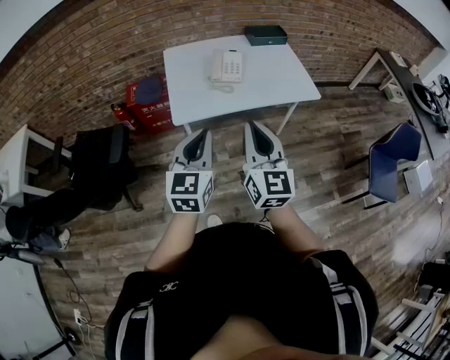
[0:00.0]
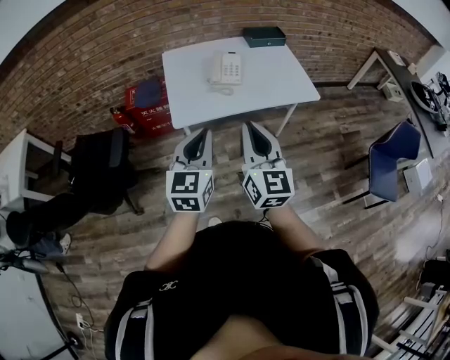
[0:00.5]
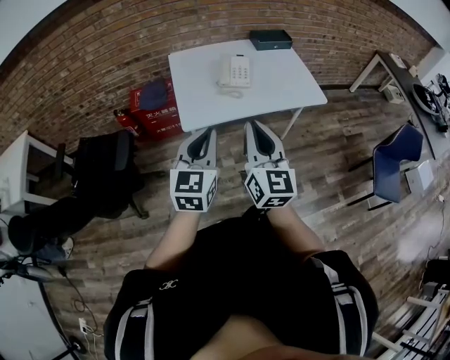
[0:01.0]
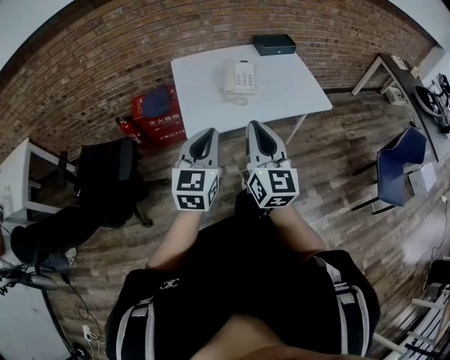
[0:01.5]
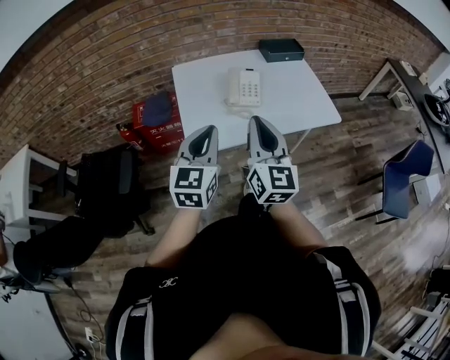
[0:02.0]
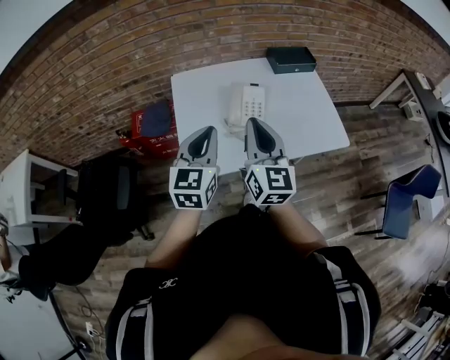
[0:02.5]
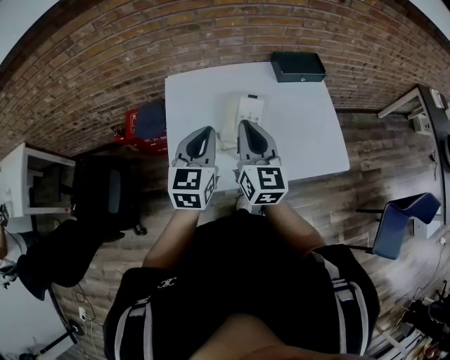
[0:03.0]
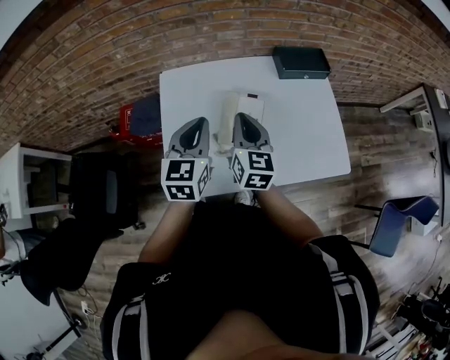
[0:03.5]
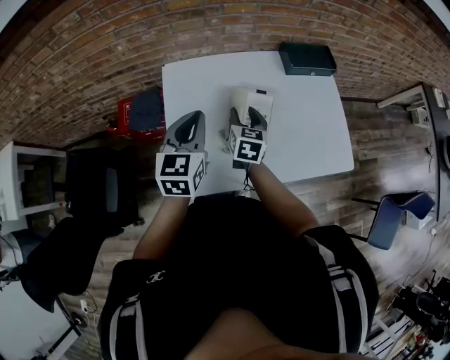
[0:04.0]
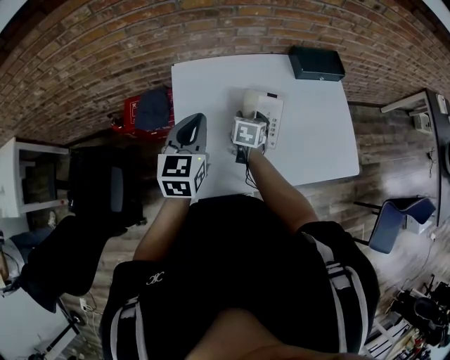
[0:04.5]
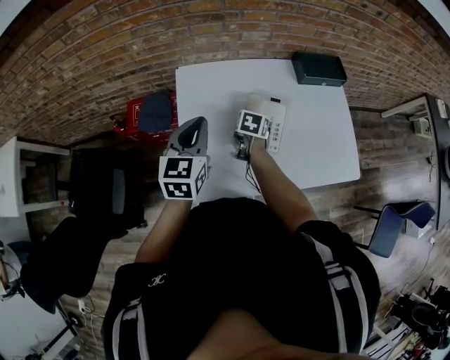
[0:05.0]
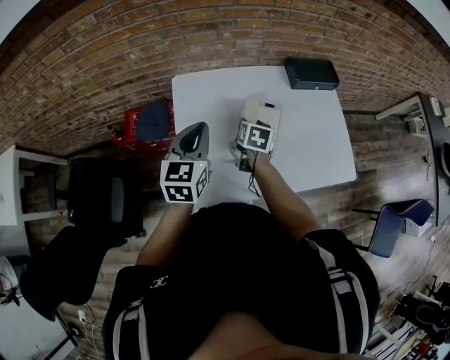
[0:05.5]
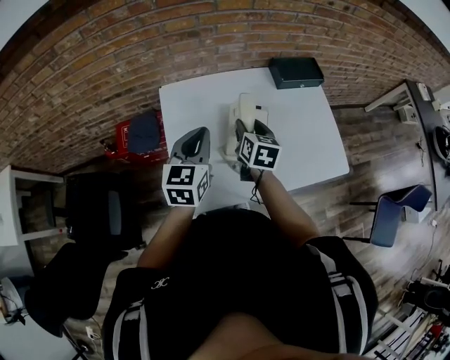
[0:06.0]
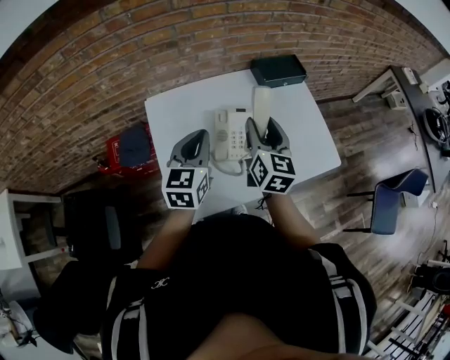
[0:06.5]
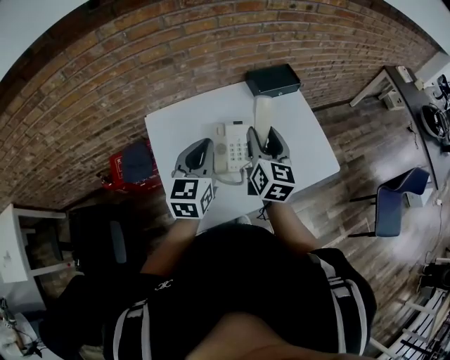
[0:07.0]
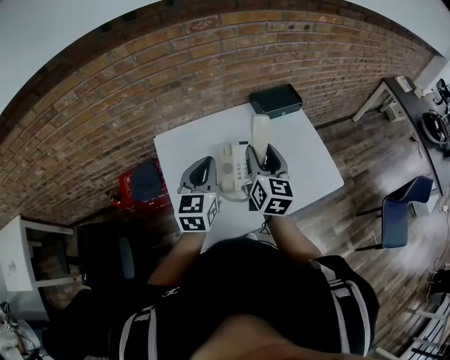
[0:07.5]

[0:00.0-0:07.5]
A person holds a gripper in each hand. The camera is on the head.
0:00.0 to 0:02.0: The right gripper goes some 15 cm forward and to the left. Meanwhile the left gripper moves forward, about 15 cm.
0:02.0 to 0:04.0: The left gripper is displaced forward by approximately 30 cm. Meanwhile the right gripper is displaced forward and downward by approximately 40 cm, points its fingers about 40 degrees further downward, and opens up.
0:05.5 to 0:07.5: The left gripper moves to the right, roughly 10 cm. The right gripper heads upward and to the right, covering approximately 20 cm, and tilts its fingers about 40 degrees upward.

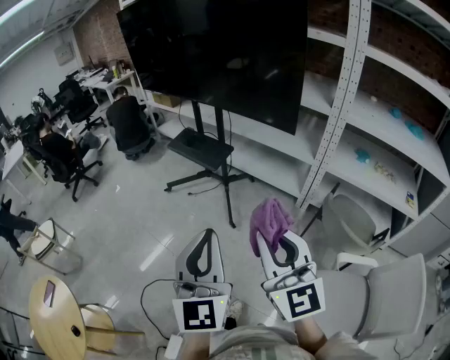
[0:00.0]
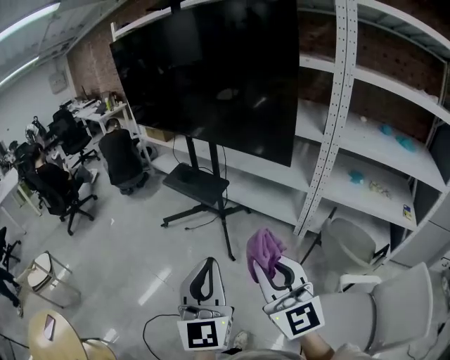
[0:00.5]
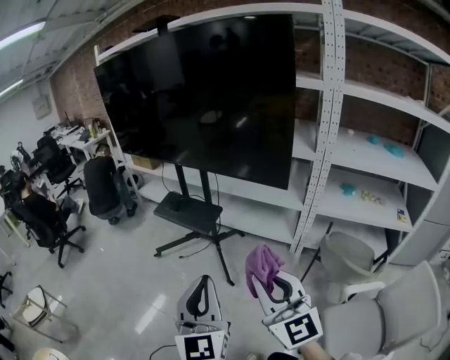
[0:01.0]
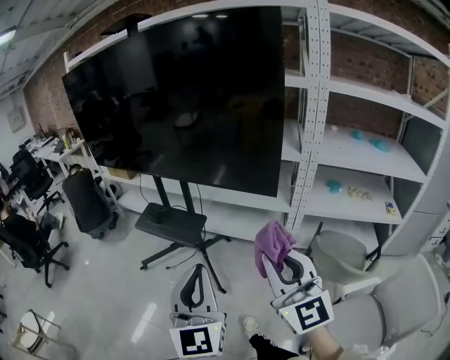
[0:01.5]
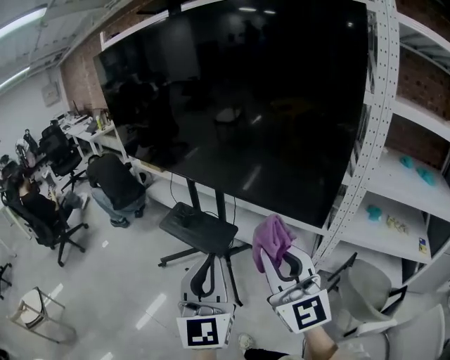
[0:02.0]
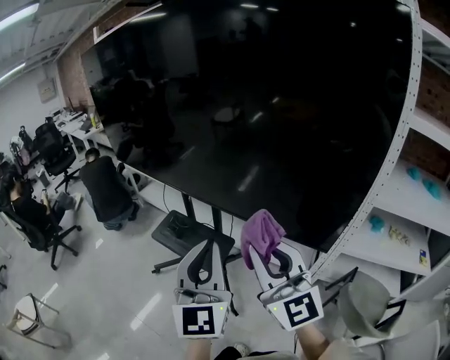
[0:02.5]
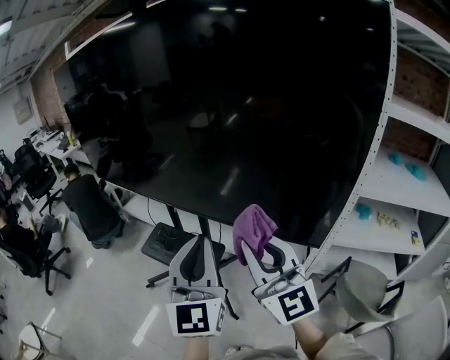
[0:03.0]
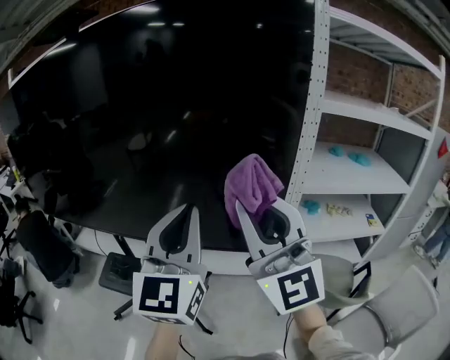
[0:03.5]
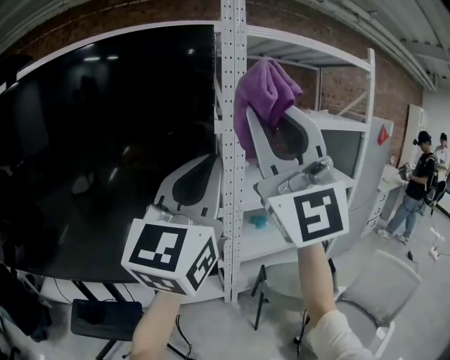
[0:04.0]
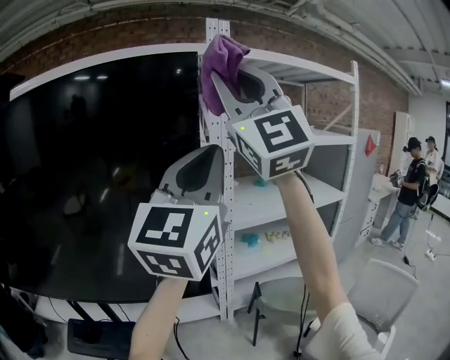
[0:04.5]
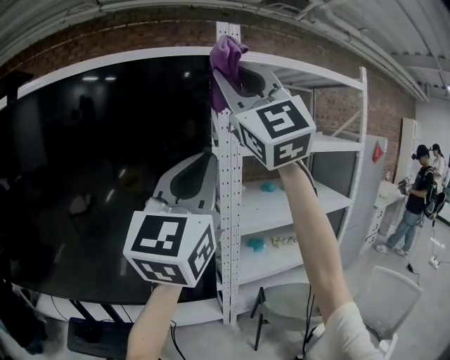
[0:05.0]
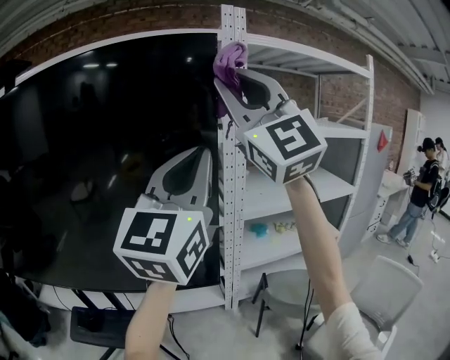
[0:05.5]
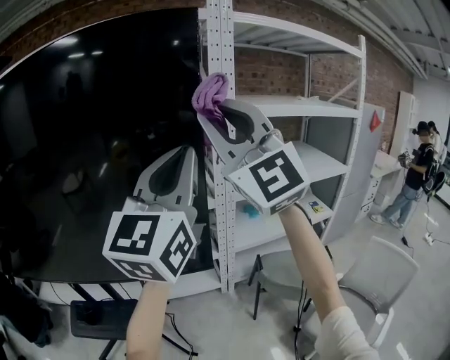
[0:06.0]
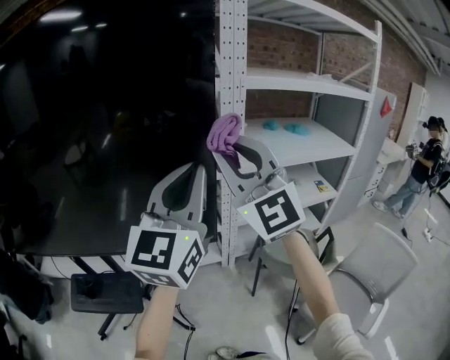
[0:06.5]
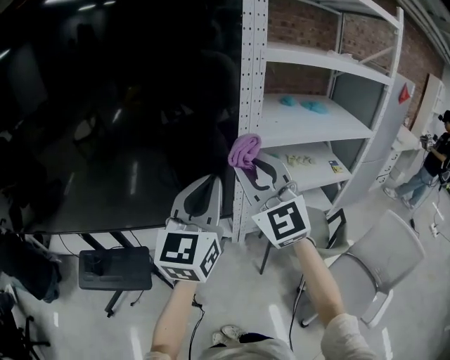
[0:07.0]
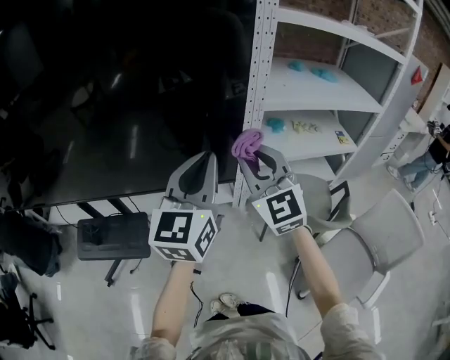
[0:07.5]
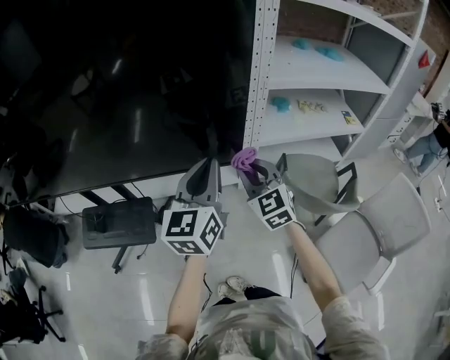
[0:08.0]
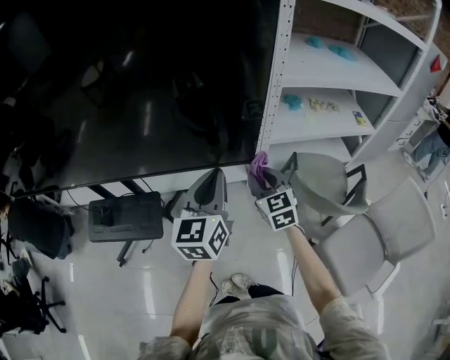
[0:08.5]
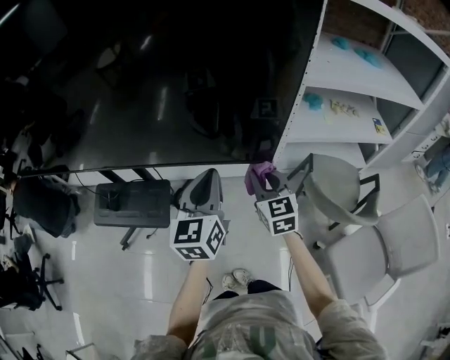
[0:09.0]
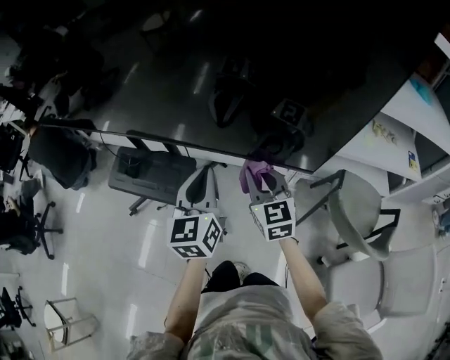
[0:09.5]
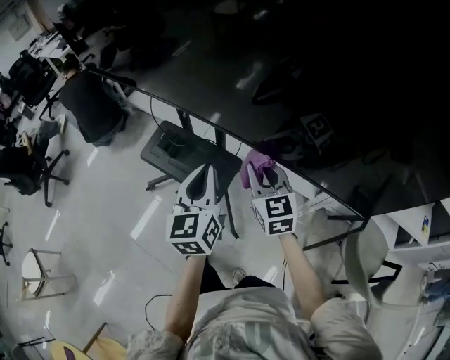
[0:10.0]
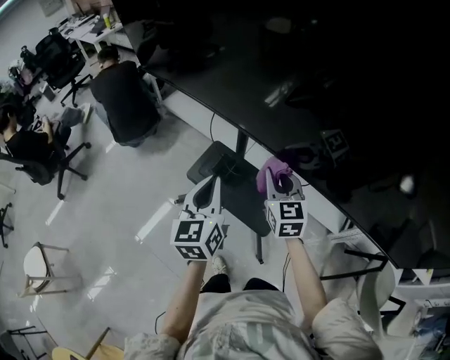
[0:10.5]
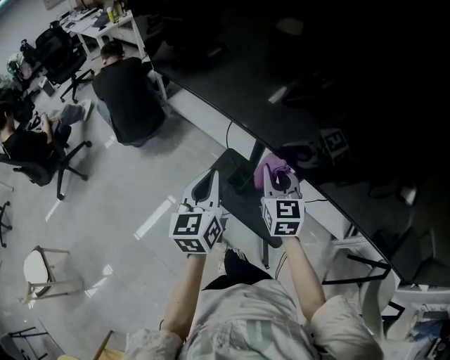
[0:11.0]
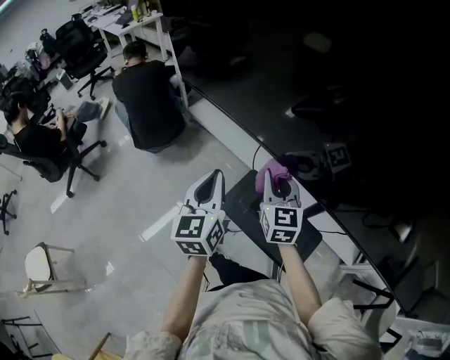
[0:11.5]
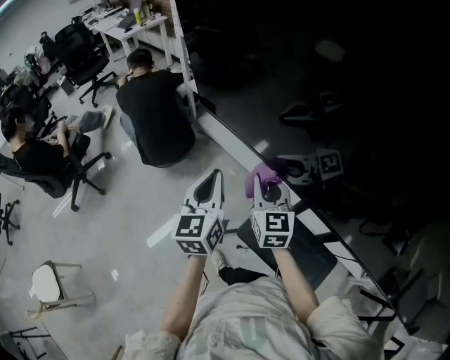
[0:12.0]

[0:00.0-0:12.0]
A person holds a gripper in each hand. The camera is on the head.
0:00.0 to 0:02.0: Both grippers travel together forward, roughly 35 cm.
0:02.0 to 0:04.0: The left gripper shifts by about 40 cm, and turns by roughly 60 degrees. Meanwhile the right gripper goes some 35 cm upward, and rotates around the line of its fingers by approximately 50 degrees, counterclockwise from behind.
0:04.0 to 0:06.0: The right gripper shifts approximately 10 cm forward, and goes upward and returns, about 10 cm each way.
0:06.0 to 0:08.0: Both grippers travel together downward, roughly 40 cm. The left gripper changes its angle by approximately 30 degrees, while the right gripper angles its fingers downward, by approximately 40 degrees.
0:08.0 to 0:10.0: The right gripper moves some 35 cm, and rotates approximately 30 degrees, while the left gripper changes place by approximately 35 cm, and changes its angle by approximately 50 degrees.
0:10.0 to 0:12.0: The pair of grippers is taken to the left and forward, roughly 60 cm.

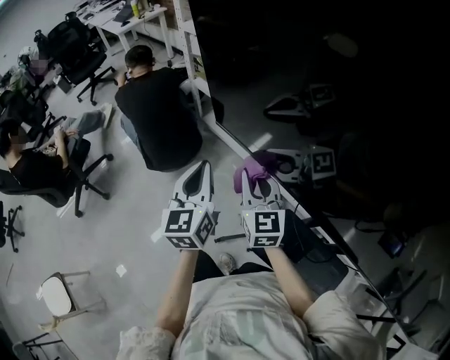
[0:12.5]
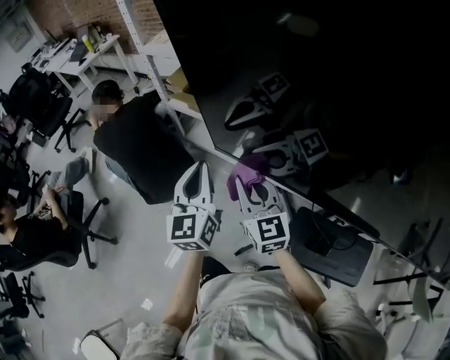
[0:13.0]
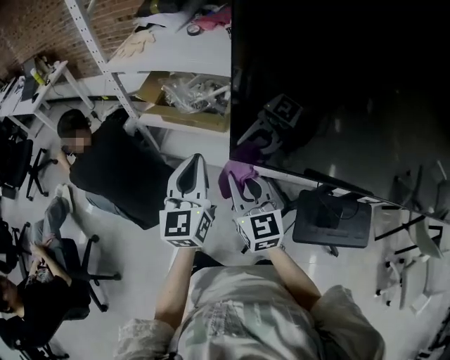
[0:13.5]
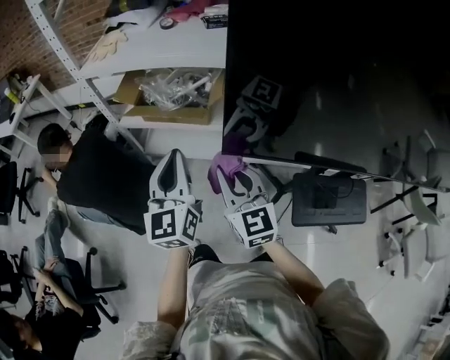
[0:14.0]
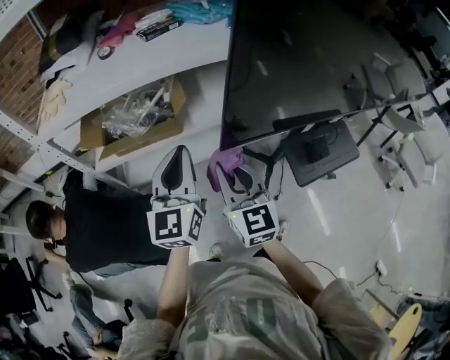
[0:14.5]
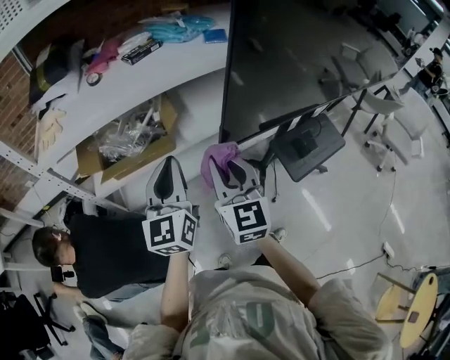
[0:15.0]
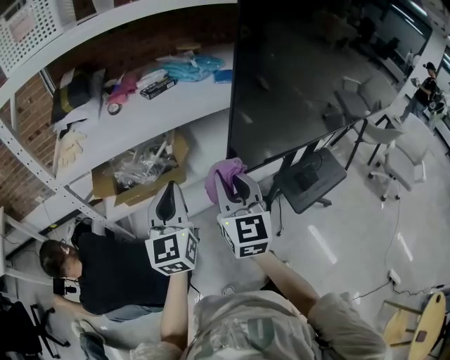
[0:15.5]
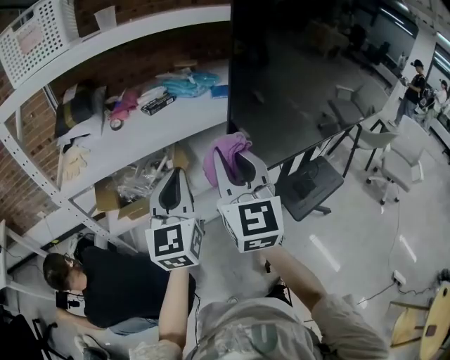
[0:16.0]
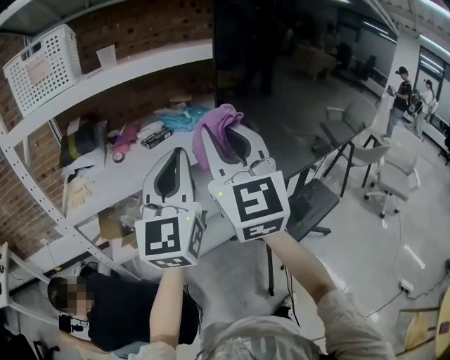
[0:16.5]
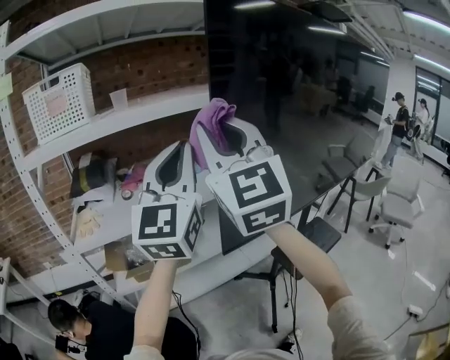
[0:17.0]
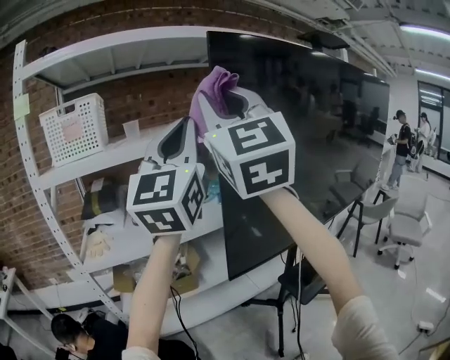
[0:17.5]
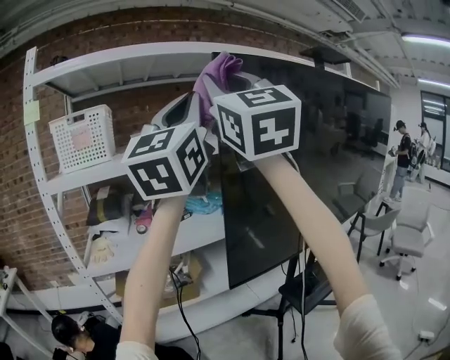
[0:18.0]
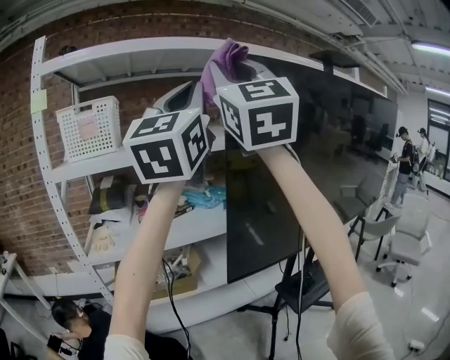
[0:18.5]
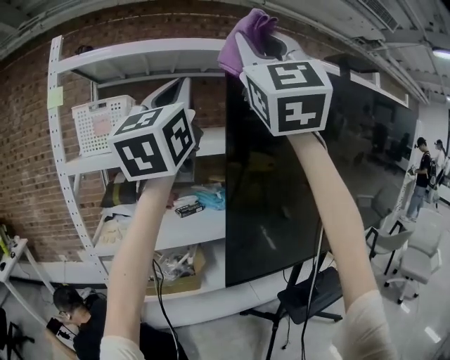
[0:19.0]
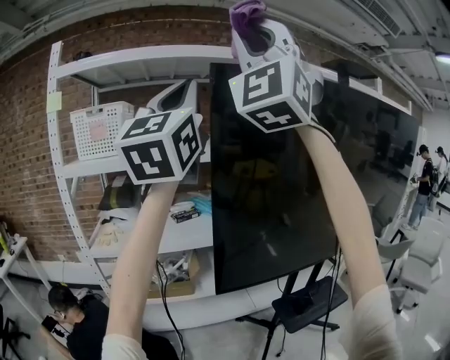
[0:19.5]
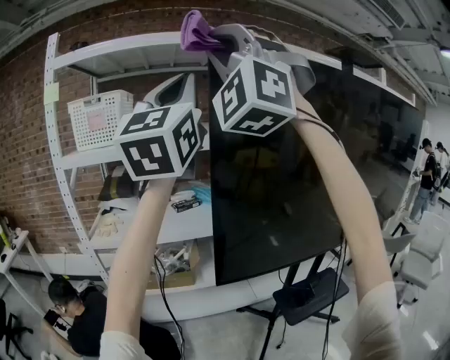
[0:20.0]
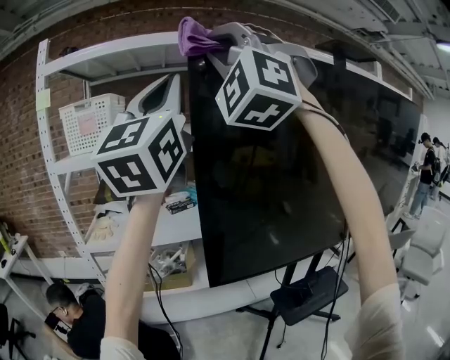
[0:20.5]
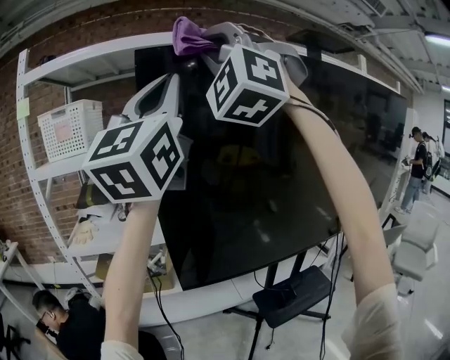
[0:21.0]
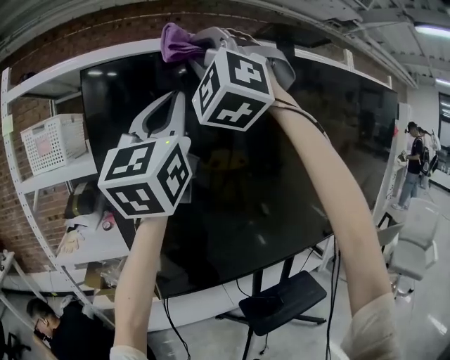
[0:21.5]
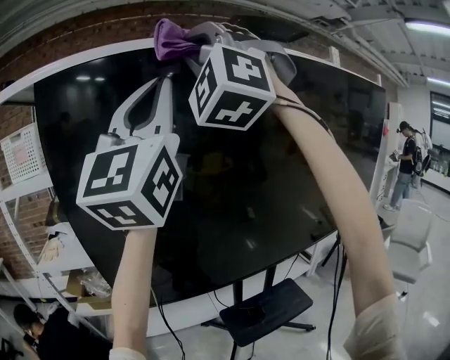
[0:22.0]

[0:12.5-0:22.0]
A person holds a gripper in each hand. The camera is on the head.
0:12.5 to 0:14.5: The right gripper moves approximately 15 cm, and swivels about 50 degrees; the left gripper shifts by approximately 20 cm, and rotates about 60 degrees.
0:14.5 to 0:16.5: Both grippers move upward, about 35 cm. The left gripper rotates some 20 degrees. Meanwhile the right gripper rotates some 30 degrees.
0:16.5 to 0:18.0: The two grippers go approximately 30 cm upward.
0:18.0 to 0:20.0: The right gripper rotates around the line of its fingers by some 60 degrees, counterclockwise from behind.
0:20.0 to 0:22.0: The two grippers go roughly 30 cm to the right.
